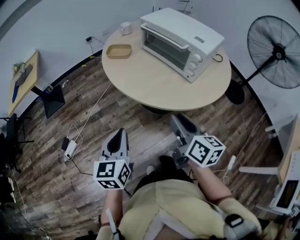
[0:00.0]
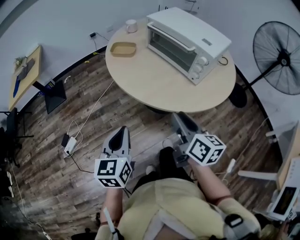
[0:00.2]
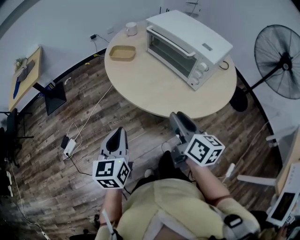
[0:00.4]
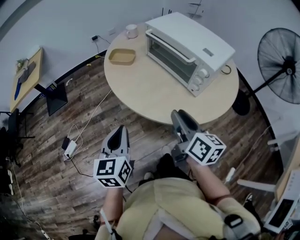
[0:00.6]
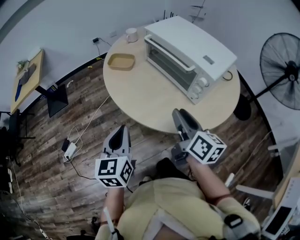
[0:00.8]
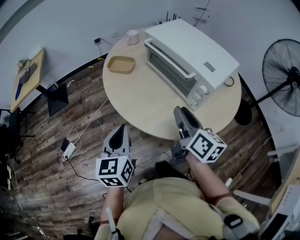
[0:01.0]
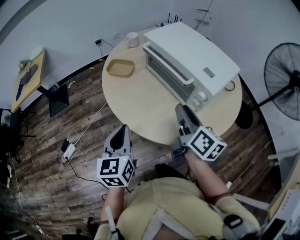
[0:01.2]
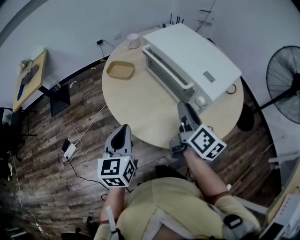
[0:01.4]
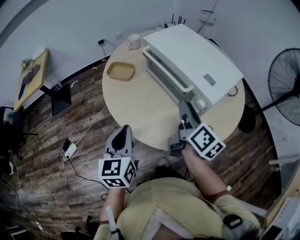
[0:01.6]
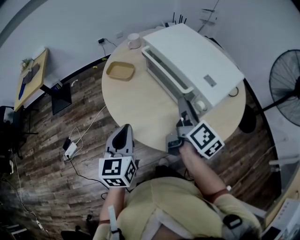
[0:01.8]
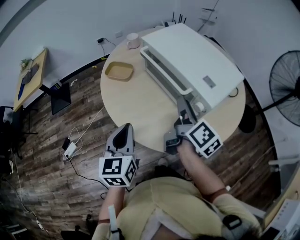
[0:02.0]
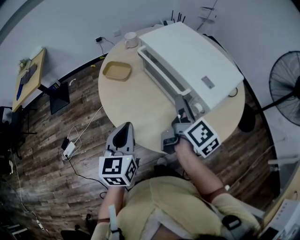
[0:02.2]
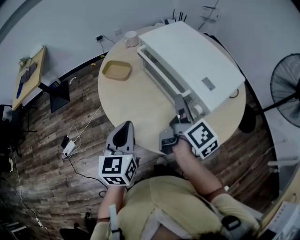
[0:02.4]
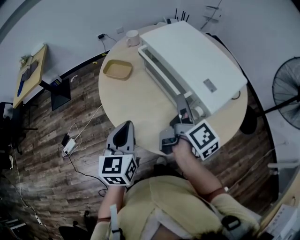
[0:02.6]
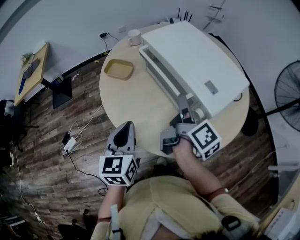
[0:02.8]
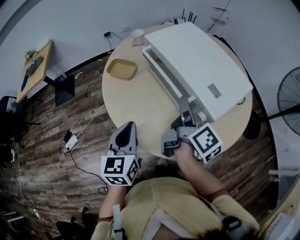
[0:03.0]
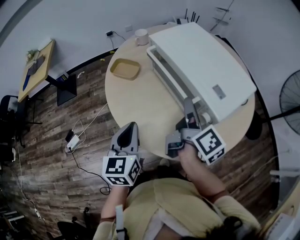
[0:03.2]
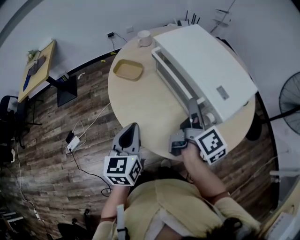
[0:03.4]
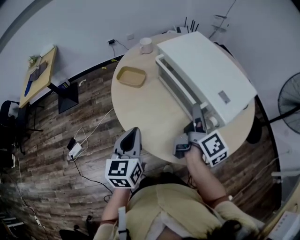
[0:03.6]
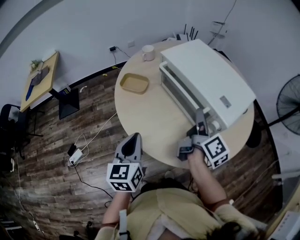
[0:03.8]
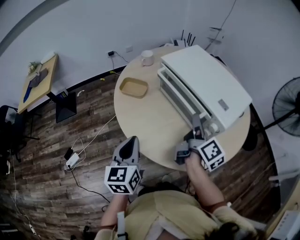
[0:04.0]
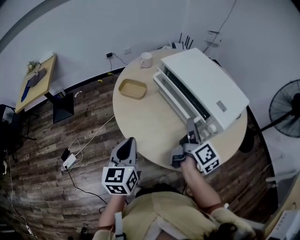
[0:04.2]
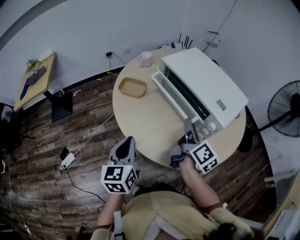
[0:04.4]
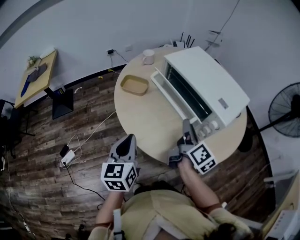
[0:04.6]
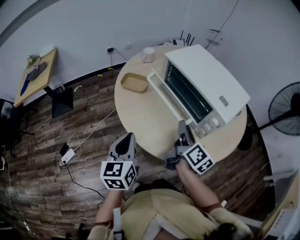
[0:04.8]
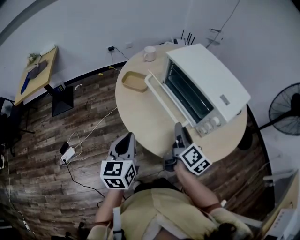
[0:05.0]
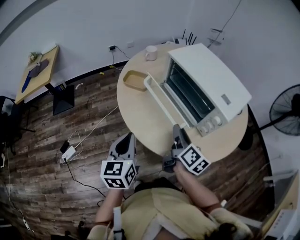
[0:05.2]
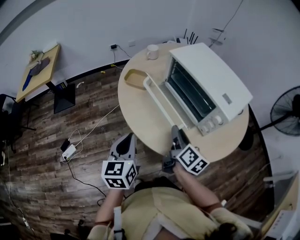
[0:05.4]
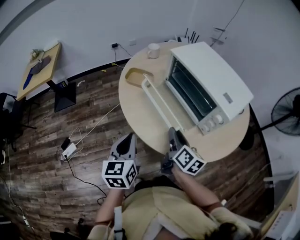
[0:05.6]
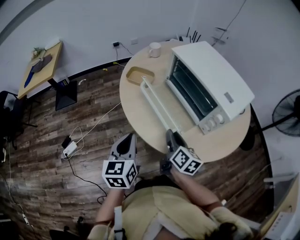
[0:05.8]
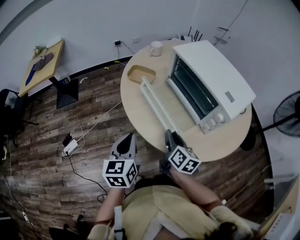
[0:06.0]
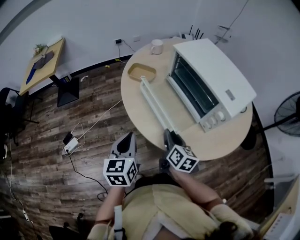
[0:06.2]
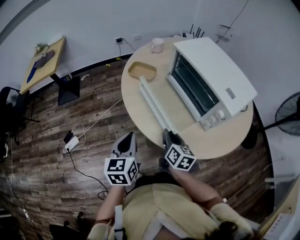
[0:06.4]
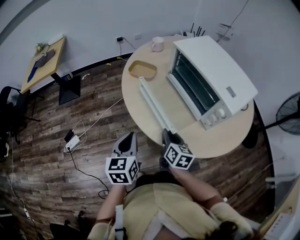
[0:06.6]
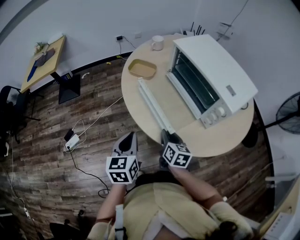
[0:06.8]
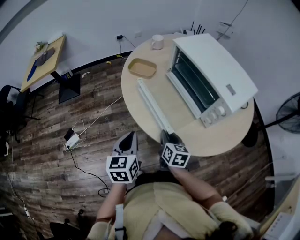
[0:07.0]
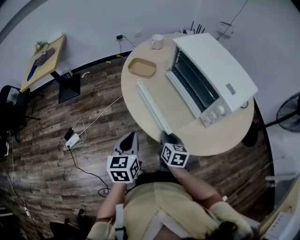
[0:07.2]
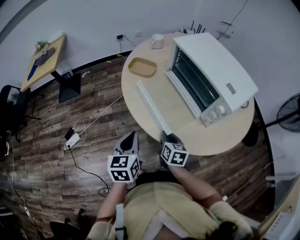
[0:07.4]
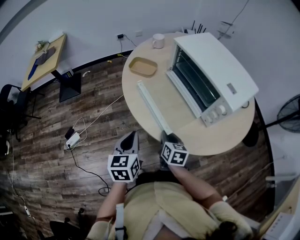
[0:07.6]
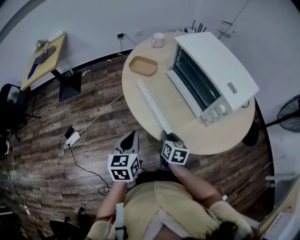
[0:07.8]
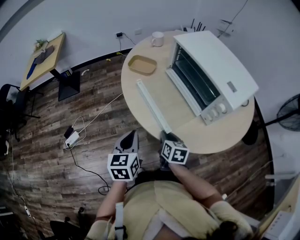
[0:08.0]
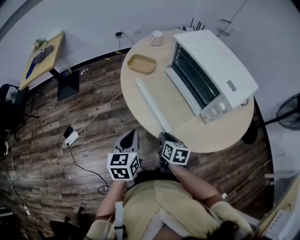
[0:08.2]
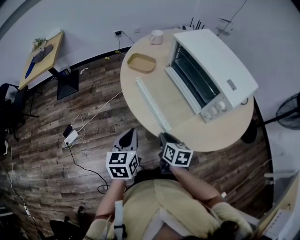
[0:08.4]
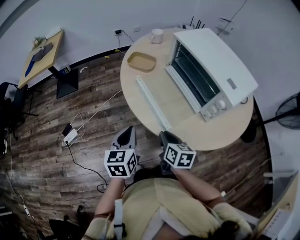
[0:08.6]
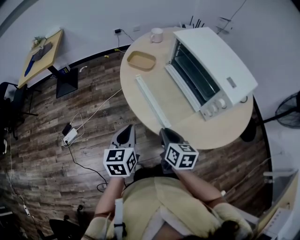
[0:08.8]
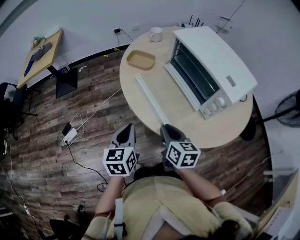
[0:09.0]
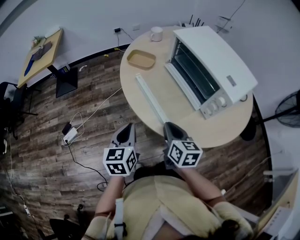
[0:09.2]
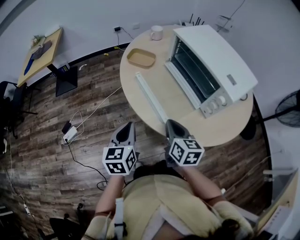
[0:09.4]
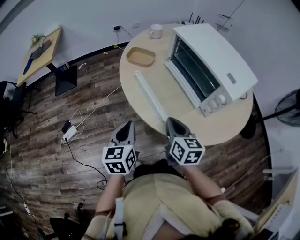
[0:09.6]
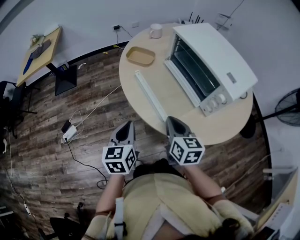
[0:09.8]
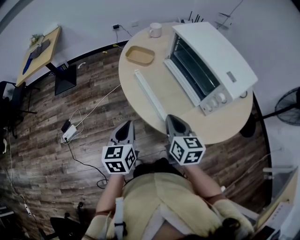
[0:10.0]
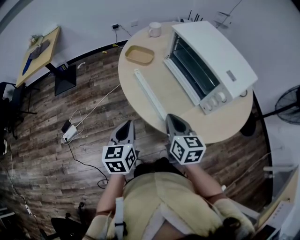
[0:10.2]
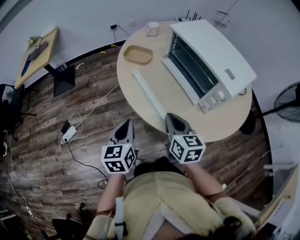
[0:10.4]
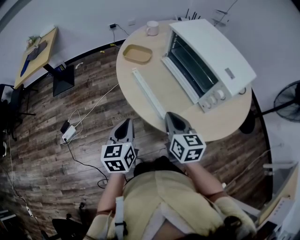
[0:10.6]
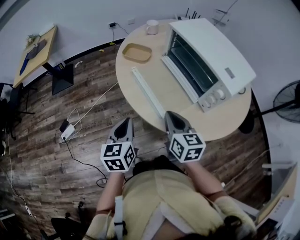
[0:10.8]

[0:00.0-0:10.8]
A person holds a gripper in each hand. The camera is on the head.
0:00.0 to 0:01.6: Both grippers travel together forward and to the right, about 25 cm.
0:01.6 to 0:03.0: The right gripper shifts some 5 cm forward, and turns by approximately 20 degrees. Meanwhile the left gripper moves about 5 cm.
0:03.0 to 0:04.6: The left gripper heads to the left, covering about 10 cm; the right gripper changes place by approximately 5 cm.
0:04.6 to 0:06.2: The left gripper ends up approximately 5 cm from where it was, while the right gripper shifts roughly 15 cm downward, to the left and backward, and rotates some 30 degrees.
0:06.2 to 0:07.8: The right gripper moves downward, roughly 10 cm.
0:07.8 to 0:09.2: The right gripper moves upward, approximately 10 cm.
0:09.2 to 0:10.8: The grippers stay close to where they were, moving slightly.

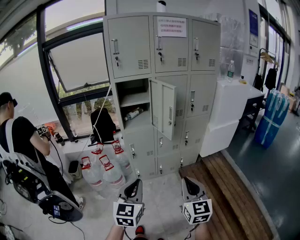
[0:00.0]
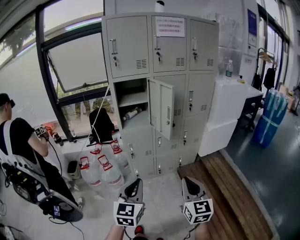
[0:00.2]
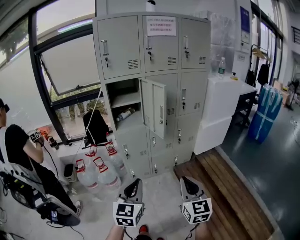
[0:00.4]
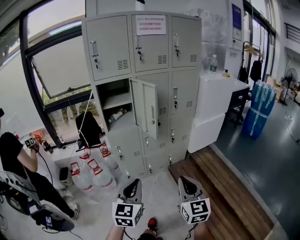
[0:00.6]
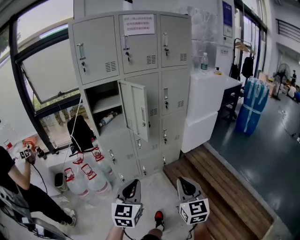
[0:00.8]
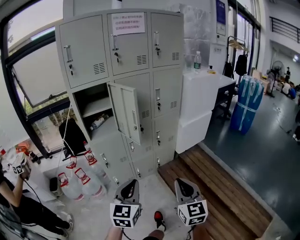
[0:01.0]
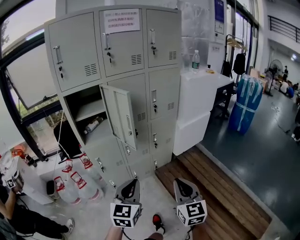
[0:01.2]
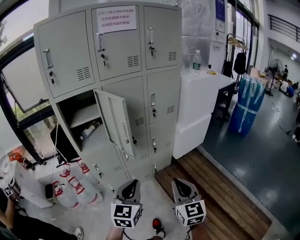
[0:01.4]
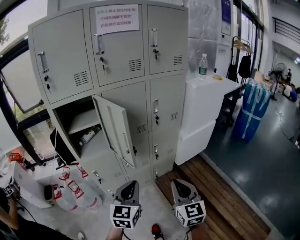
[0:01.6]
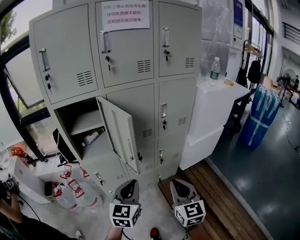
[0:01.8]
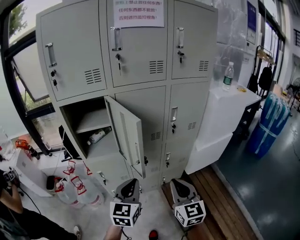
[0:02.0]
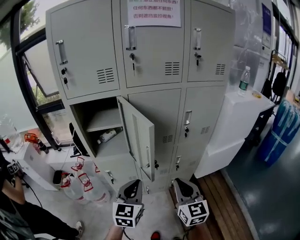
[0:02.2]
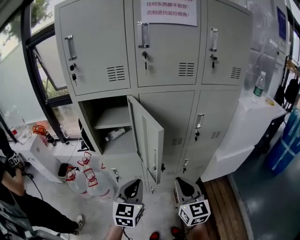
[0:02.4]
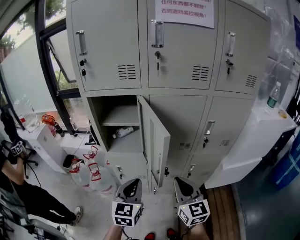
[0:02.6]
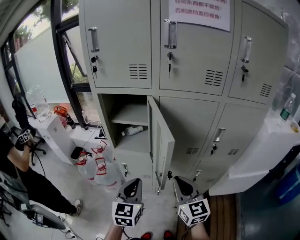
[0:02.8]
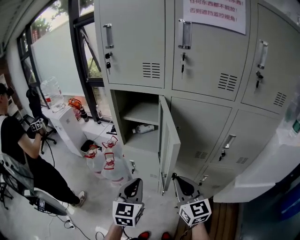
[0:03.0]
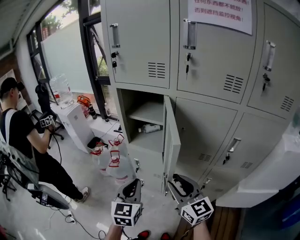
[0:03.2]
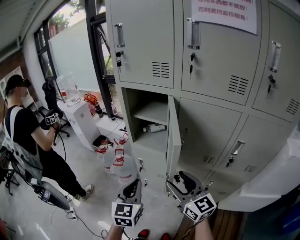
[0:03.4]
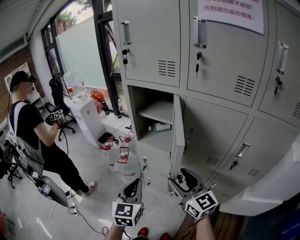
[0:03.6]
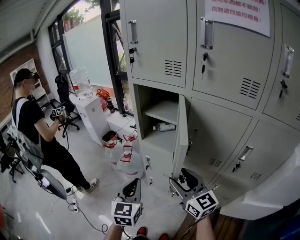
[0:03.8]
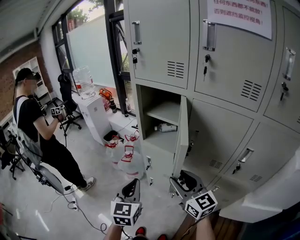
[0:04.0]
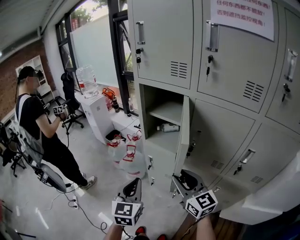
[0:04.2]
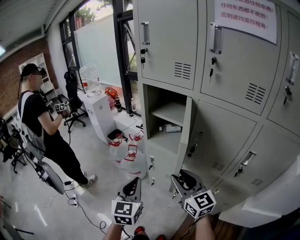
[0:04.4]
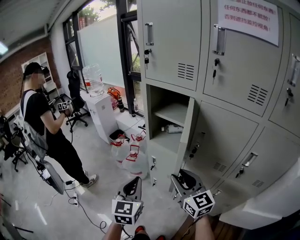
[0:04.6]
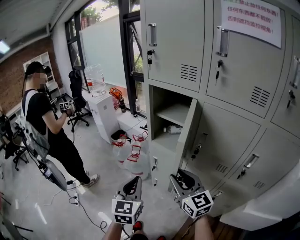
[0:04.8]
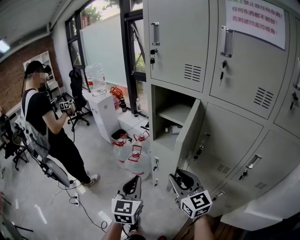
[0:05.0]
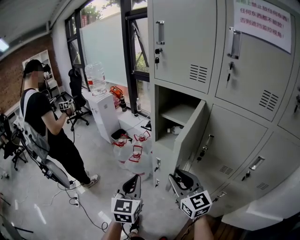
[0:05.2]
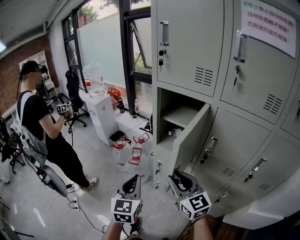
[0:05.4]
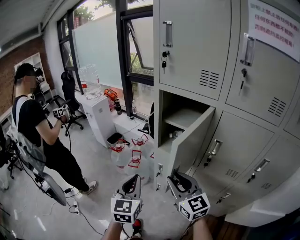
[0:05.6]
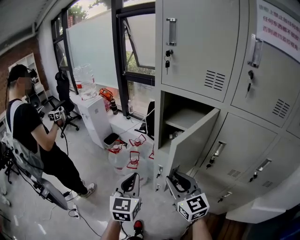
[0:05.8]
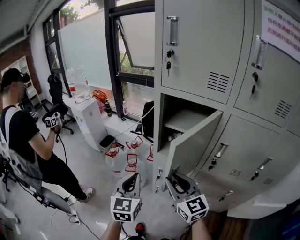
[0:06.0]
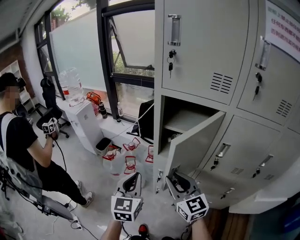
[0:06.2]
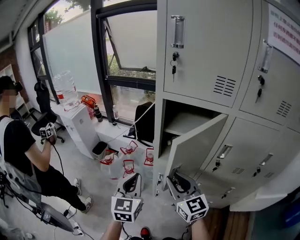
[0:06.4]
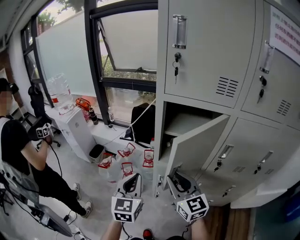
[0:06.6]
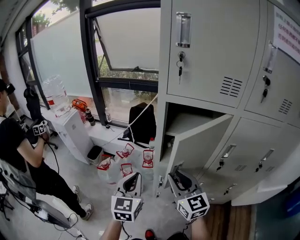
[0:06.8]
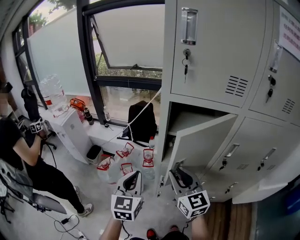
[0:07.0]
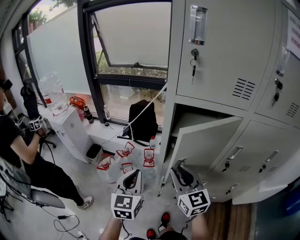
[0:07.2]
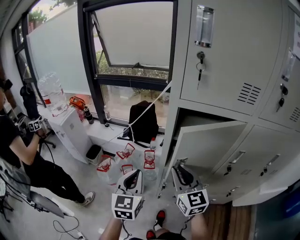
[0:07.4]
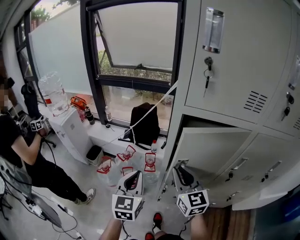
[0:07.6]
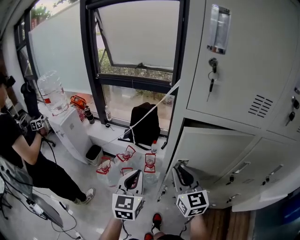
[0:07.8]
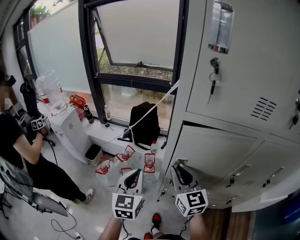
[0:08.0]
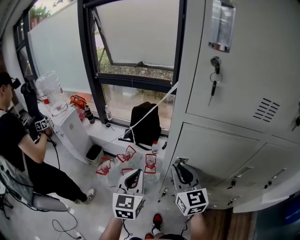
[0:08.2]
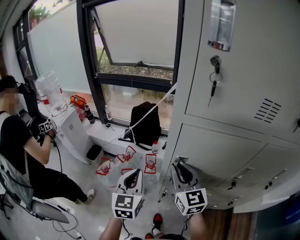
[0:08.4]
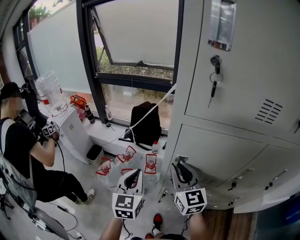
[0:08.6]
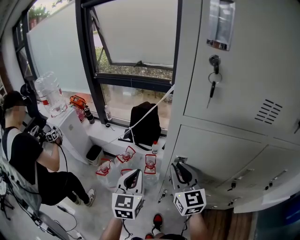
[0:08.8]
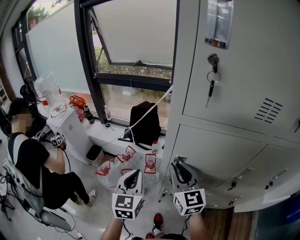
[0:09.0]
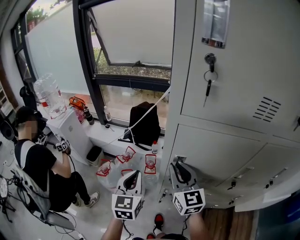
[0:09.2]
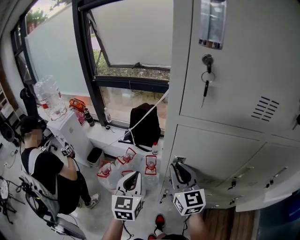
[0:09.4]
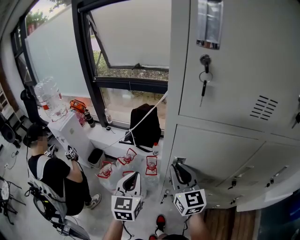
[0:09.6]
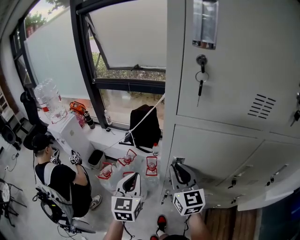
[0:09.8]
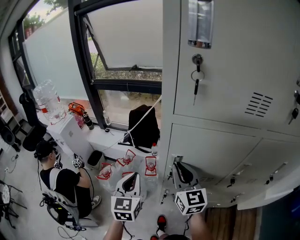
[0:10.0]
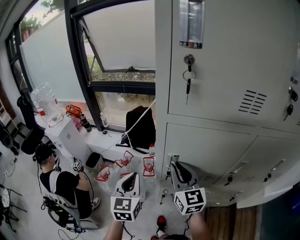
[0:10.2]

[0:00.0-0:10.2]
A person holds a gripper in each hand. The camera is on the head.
0:00.0 to 0:01.4: The two grippers go roughly 20 cm forward and to the right.
0:01.4 to 0:03.0: The right gripper changes place by roughly 30 cm, and turns by some 50 degrees. The left gripper changes place by about 20 cm, and swivels about 40 degrees.
0:03.0 to 0:04.4: The right gripper turns by about 30 degrees, and opens; the left gripper ends up roughly 5 cm from where it was, and changes its angle by approximately 20 degrees.
0:04.4 to 0:05.8: The left gripper goes some 15 cm forward and to the left, while the right gripper travels to the left and forward by about 15 cm.
0:05.8 to 0:07.2: The right gripper goes approximately 15 cm forward and to the left, and swivels some 20 degrees. The left gripper moves forward, roughly 15 cm.
0:07.2 to 0:08.8: The grippers both shift forward by roughly 10 cm.
0:08.8 to 0:10.2: The grippers move only a little.

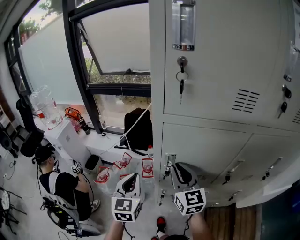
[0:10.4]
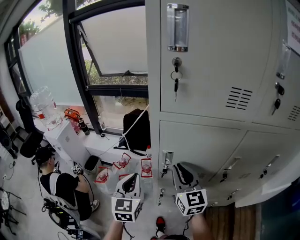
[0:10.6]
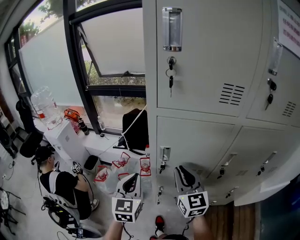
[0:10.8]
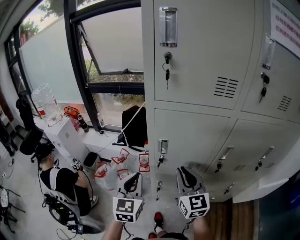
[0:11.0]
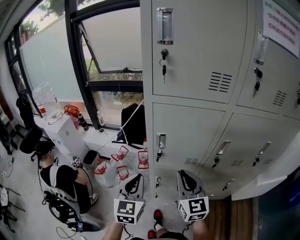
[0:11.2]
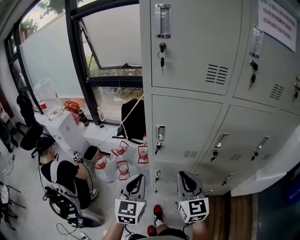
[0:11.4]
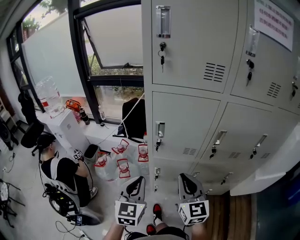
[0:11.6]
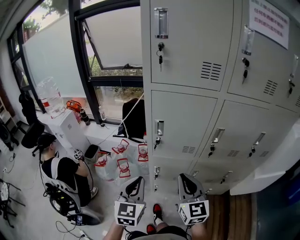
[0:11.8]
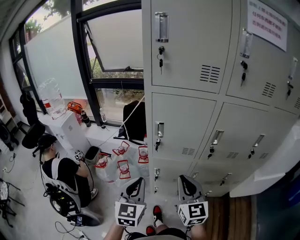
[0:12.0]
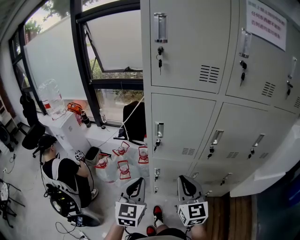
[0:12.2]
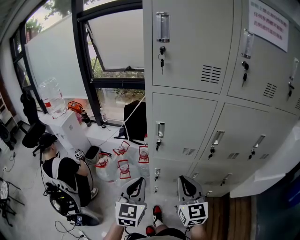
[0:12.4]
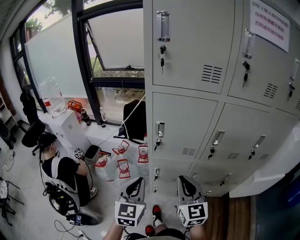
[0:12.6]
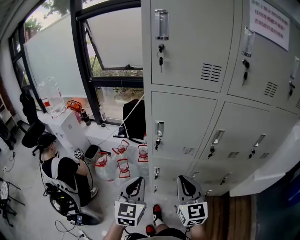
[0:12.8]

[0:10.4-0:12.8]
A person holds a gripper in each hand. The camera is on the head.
0:10.4 to 0:11.6: Both grippers travel together backward, approximately 20 cm.
0:11.6 to 0:12.8: The grippers make only small movements.
